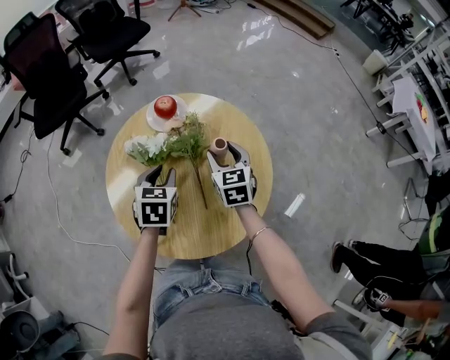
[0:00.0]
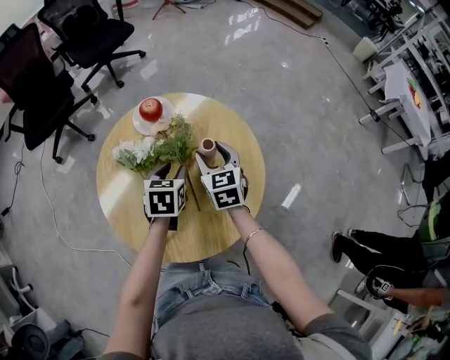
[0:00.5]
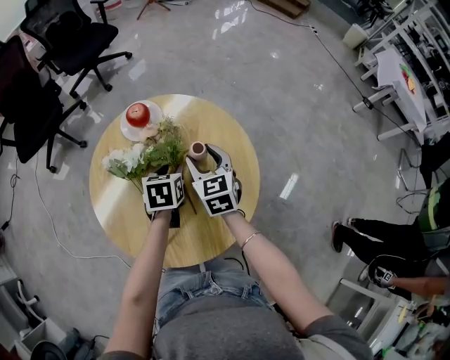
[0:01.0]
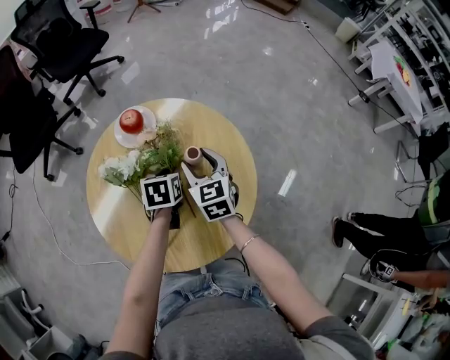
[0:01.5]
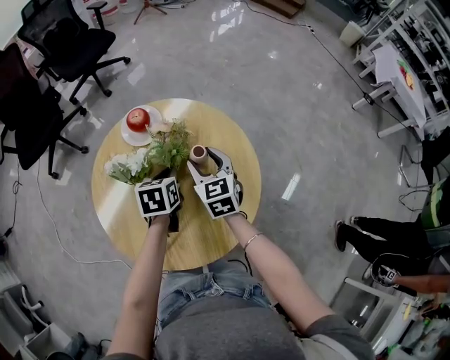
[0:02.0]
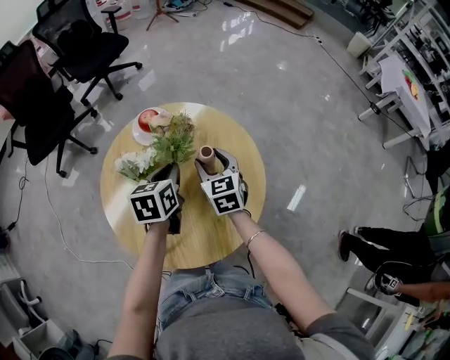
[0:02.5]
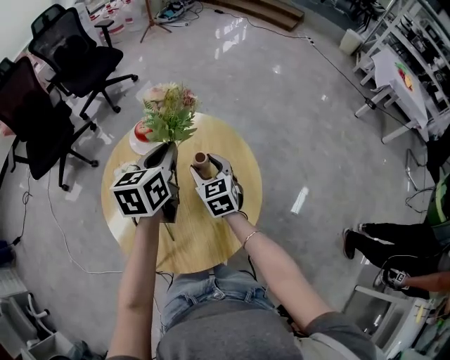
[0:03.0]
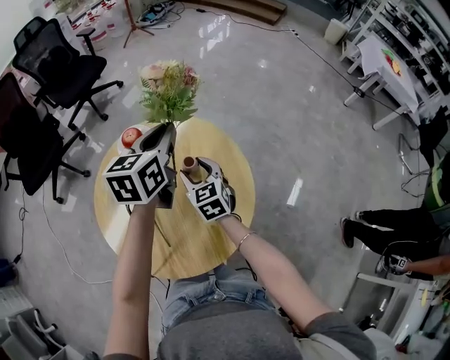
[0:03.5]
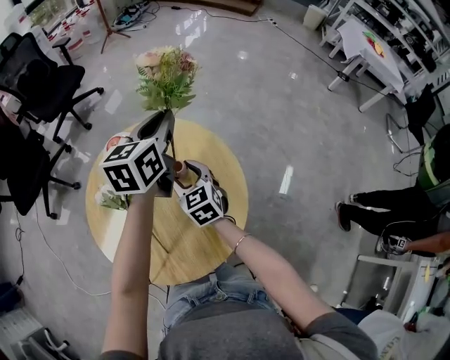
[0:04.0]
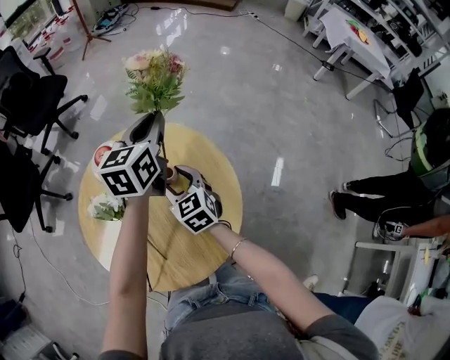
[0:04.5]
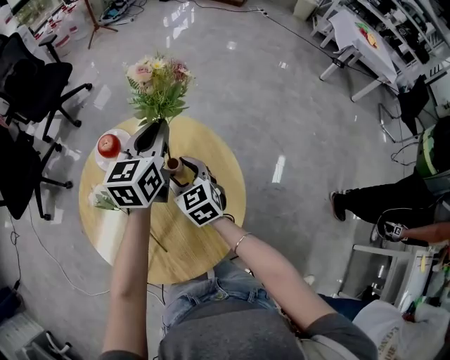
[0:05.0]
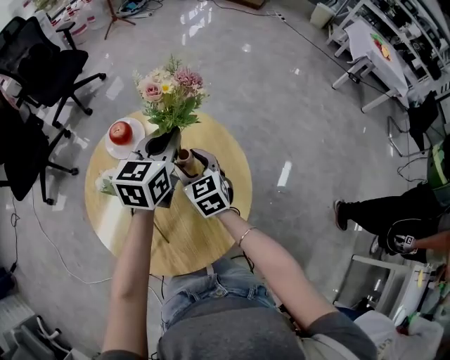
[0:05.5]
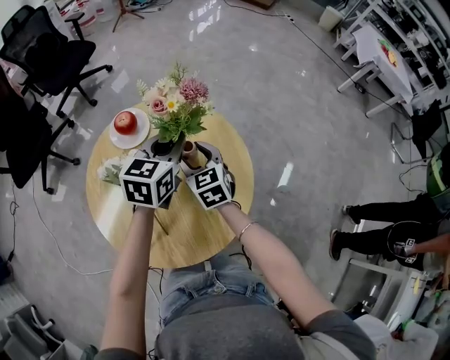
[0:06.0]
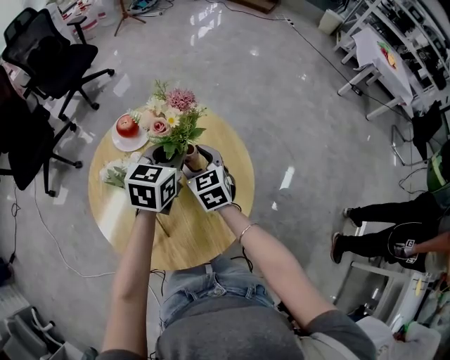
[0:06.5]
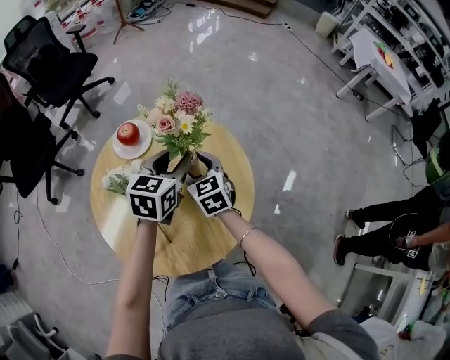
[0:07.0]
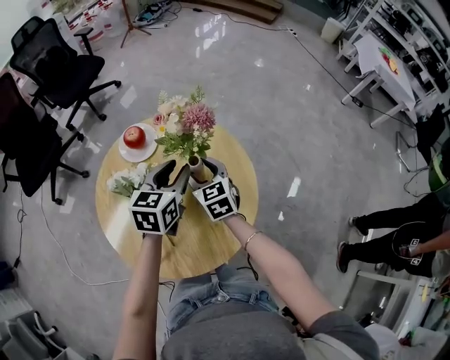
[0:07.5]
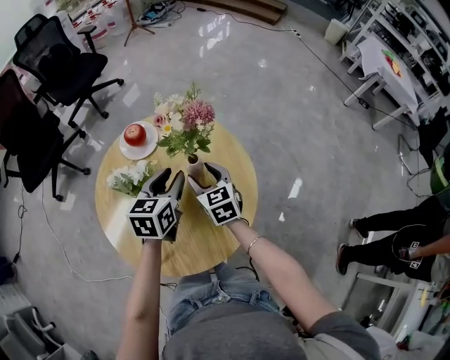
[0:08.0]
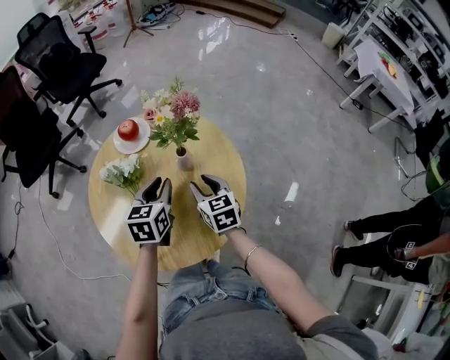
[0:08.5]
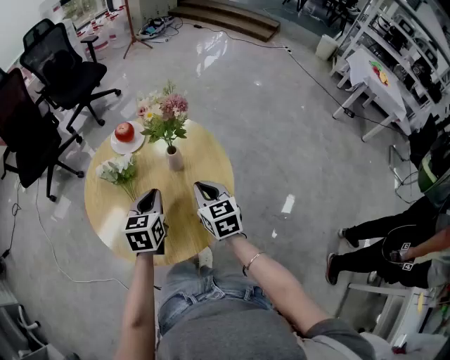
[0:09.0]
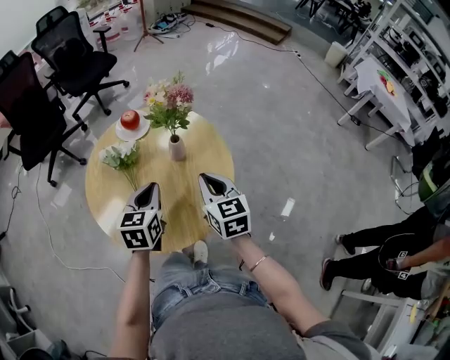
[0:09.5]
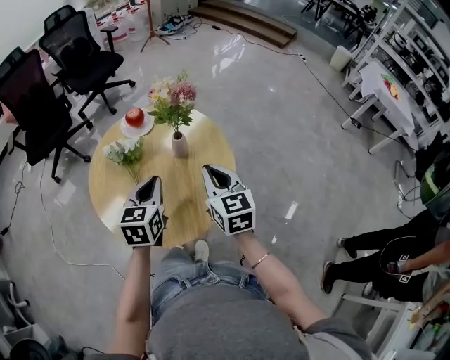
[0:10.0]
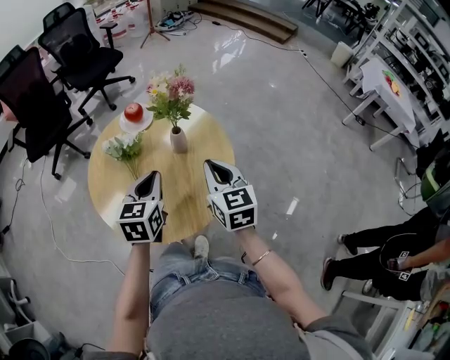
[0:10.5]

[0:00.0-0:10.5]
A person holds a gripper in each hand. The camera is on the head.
0:00.0 to 0:02.0: The left gripper moves to the right, some 5 cm, and closes up.
0:02.0 to 0:04.0: The left gripper moves upward, forward and to the right, about 25 cm, and tips its fingers upward by approximately 30 degrees.
0:04.0 to 0:06.5: The left gripper goes roughly 15 cm downward and backward.
0:06.5 to 0:08.5: The left gripper travels backward and downward by about 10 cm, while the right gripper is displaced backward by about 10 cm.
0:08.5 to 0:10.5: The left gripper is displaced backward and upward by approximately 10 cm. The right gripper is displaced upward, backward and to the right by about 15 cm, and closes its fingers.

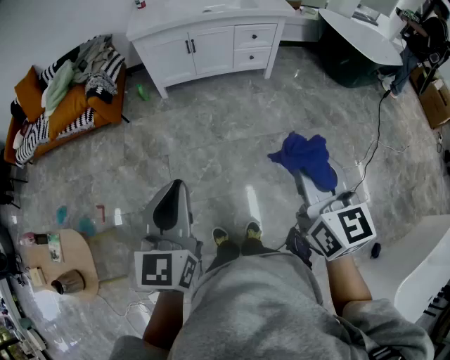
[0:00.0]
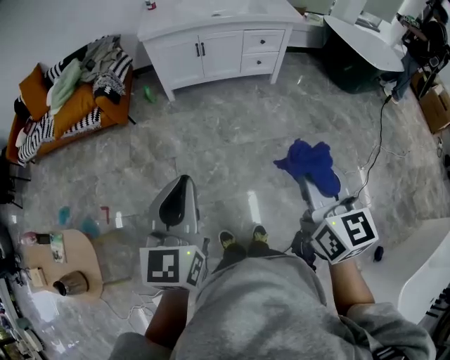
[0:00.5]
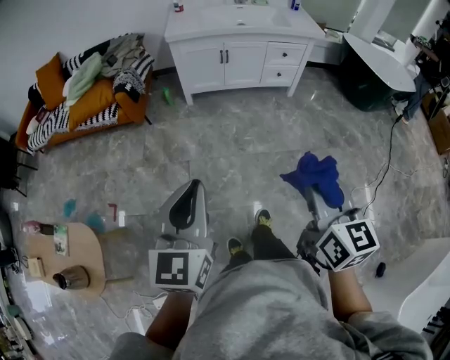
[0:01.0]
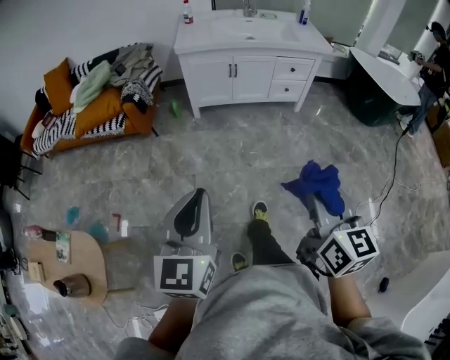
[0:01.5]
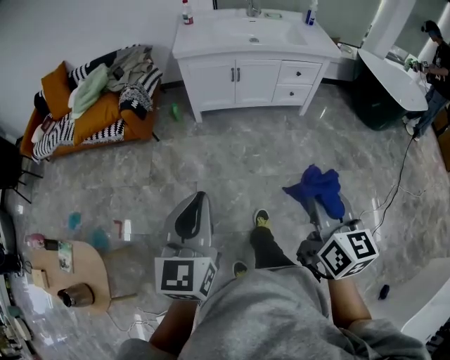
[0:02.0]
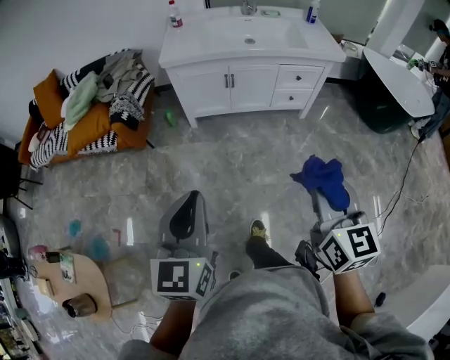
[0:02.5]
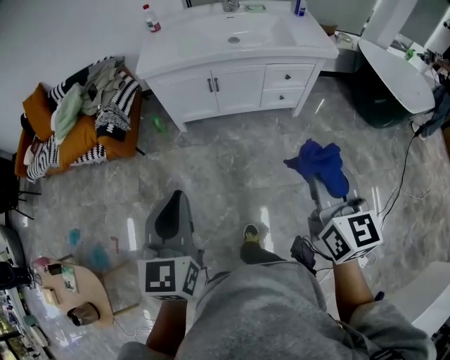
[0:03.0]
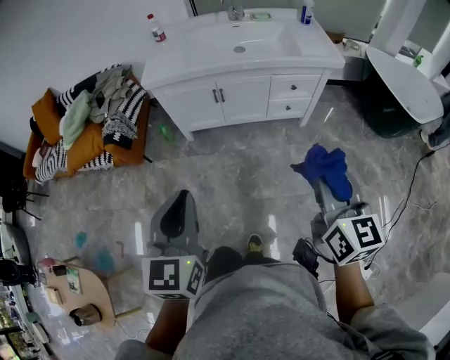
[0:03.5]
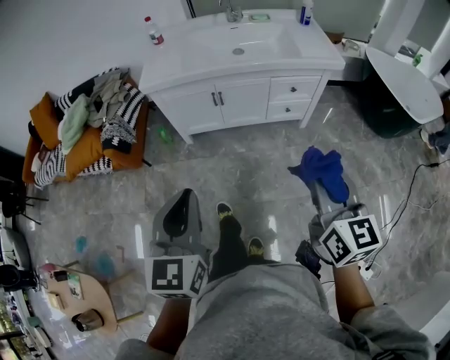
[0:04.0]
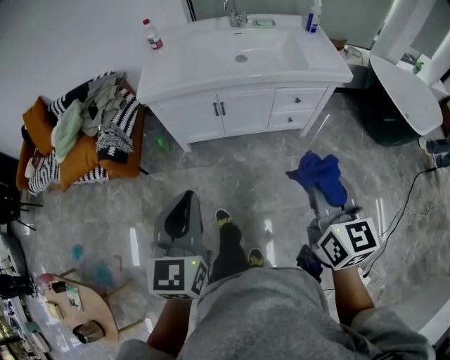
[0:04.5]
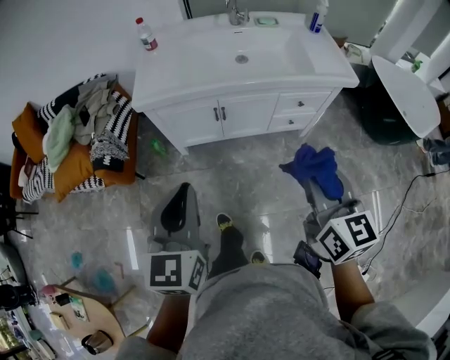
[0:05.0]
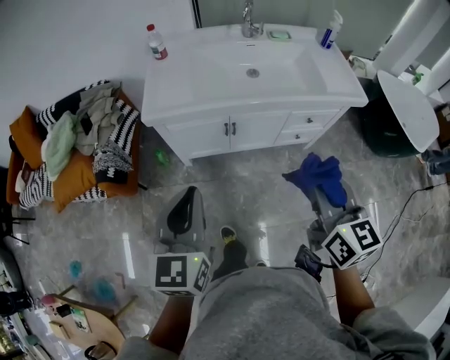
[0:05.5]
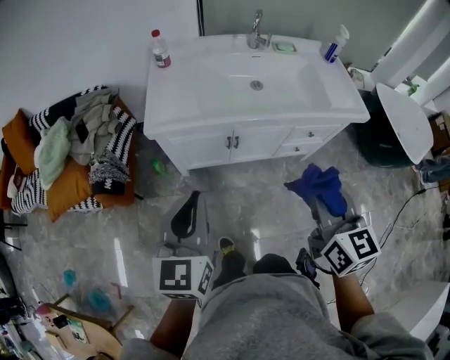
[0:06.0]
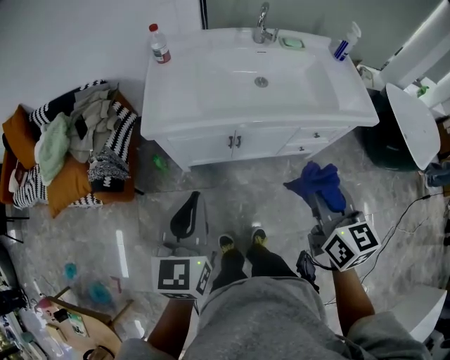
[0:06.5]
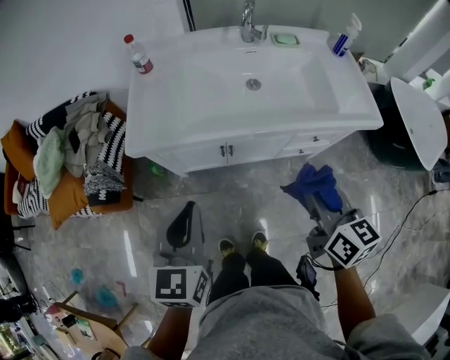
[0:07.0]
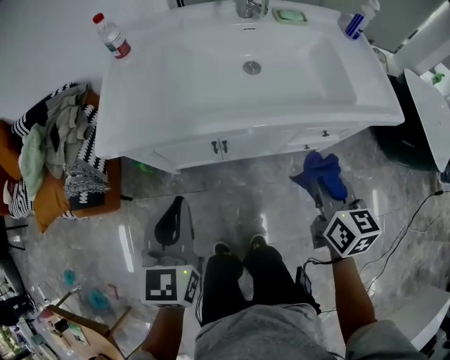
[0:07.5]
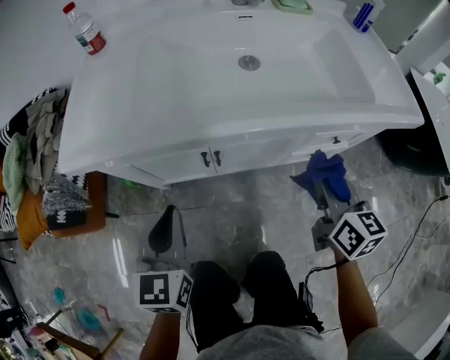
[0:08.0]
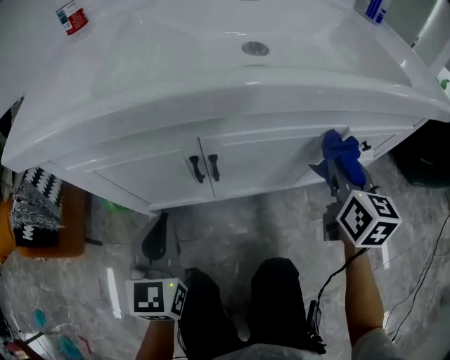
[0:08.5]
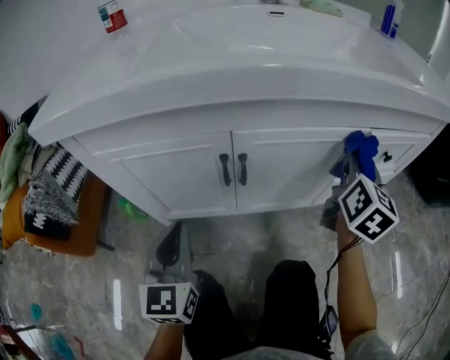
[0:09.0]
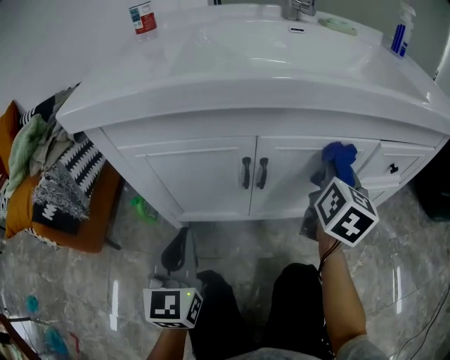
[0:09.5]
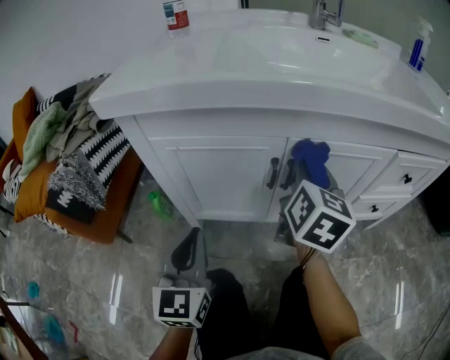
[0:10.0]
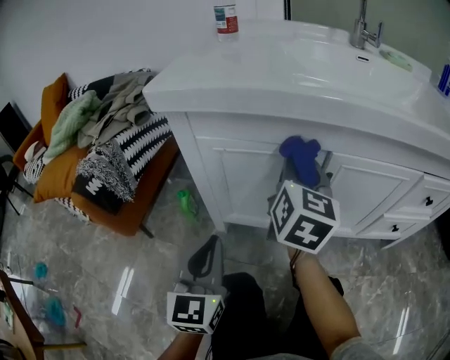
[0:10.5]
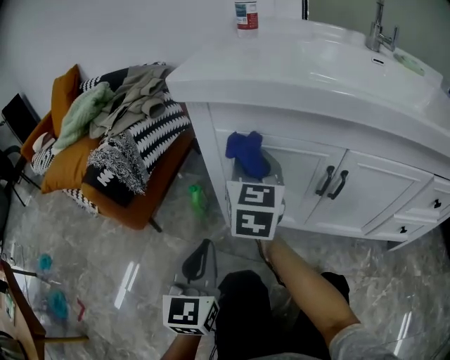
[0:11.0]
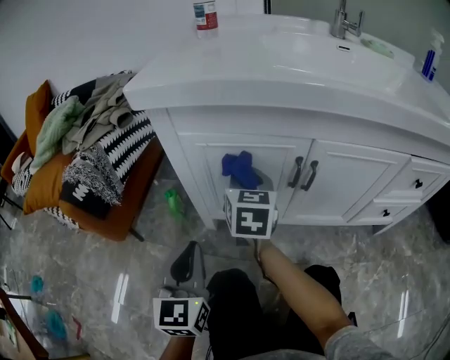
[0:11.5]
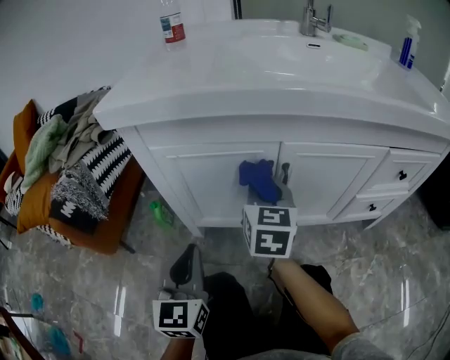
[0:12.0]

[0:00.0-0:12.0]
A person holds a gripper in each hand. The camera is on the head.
0:00.0 to 0:02.0: The left gripper moves to the left and forward, some 15 cm, while the right gripper is displaced forward and to the left by about 15 cm.
0:02.0 to 0:04.0: The two grippers go some 30 cm forward and to the right.
0:04.0 to 0:06.0: Both grippers travel together forward and to the left, about 30 cm.
0:06.0 to 0:08.0: The left gripper goes roughly 35 cm downward and forward. The right gripper travels downward, forward and to the right by roughly 40 cm.
0:08.0 to 0:10.0: The left gripper shifts some 20 cm downward and to the left. The right gripper heads to the left, downward and forward, covering some 25 cm.
0:10.0 to 0:12.0: The left gripper moves roughly 10 cm to the left and comes back. Meanwhile the right gripper shifts roughly 10 cm to the left.

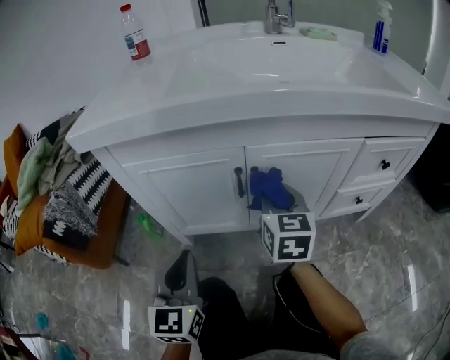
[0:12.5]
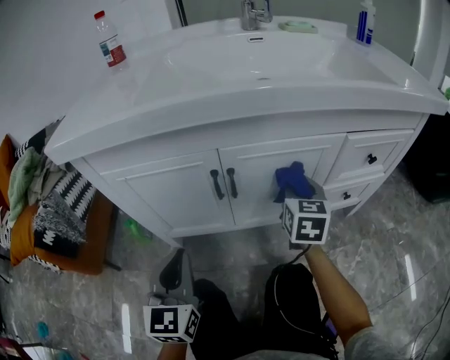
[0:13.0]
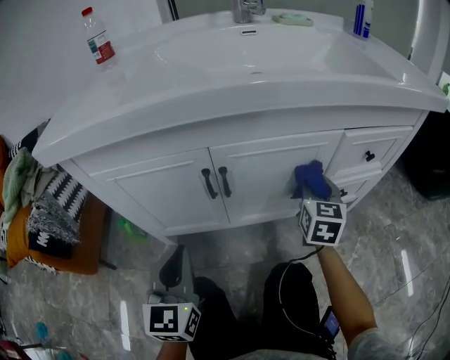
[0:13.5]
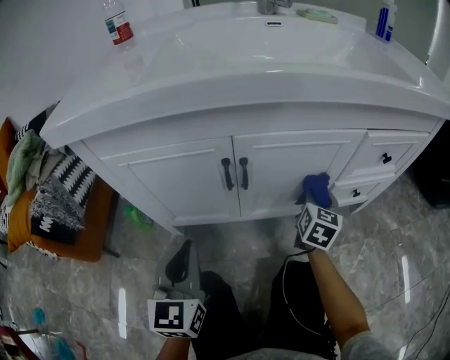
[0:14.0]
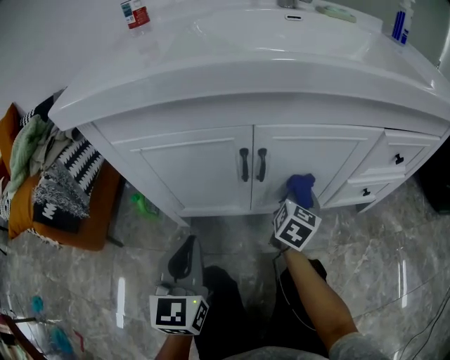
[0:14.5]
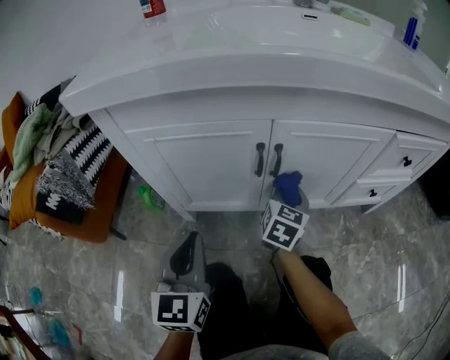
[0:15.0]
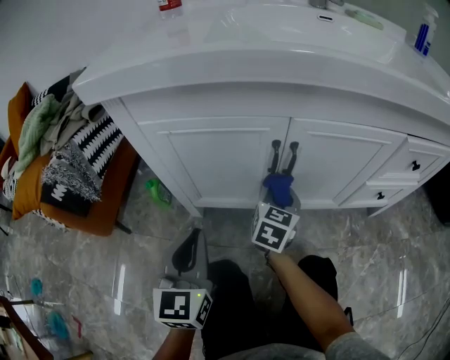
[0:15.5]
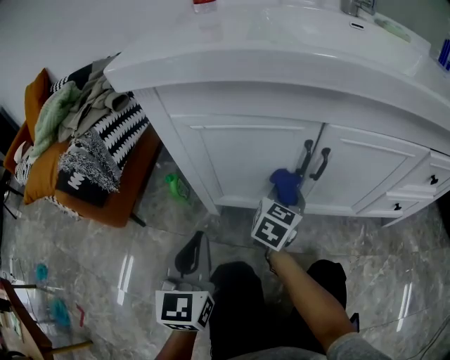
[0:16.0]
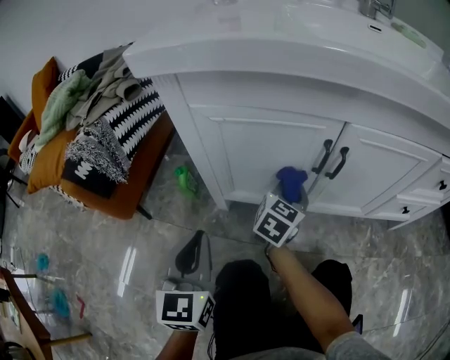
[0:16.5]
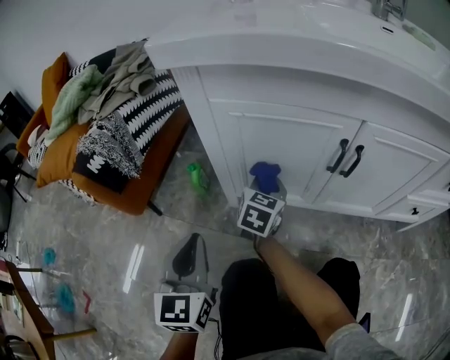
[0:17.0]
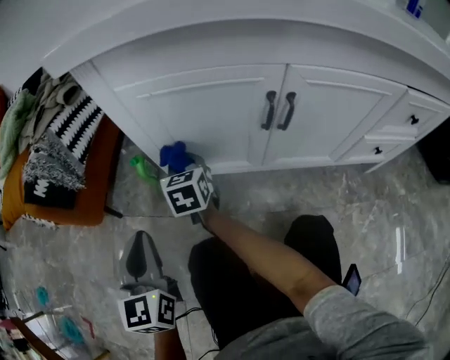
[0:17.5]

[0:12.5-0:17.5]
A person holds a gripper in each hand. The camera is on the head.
0:12.5 to 0:15.0: The right gripper moves downward, roughly 15 cm, reaches roughly 20 cm to the right, then returns, and swivels about 20 degrees.
0:15.0 to 0:17.5: The right gripper shifts by roughly 35 cm, and swivels approximately 40 degrees, while the left gripper ends up approximately 15 cm from where it was.
